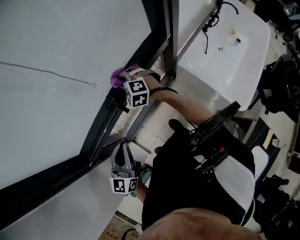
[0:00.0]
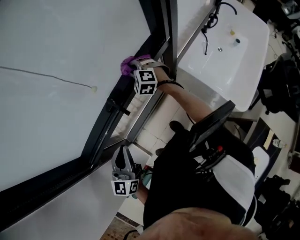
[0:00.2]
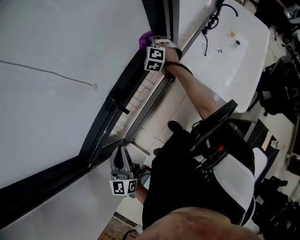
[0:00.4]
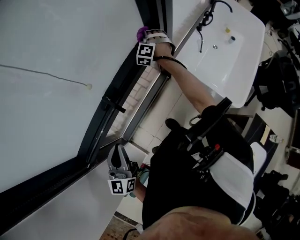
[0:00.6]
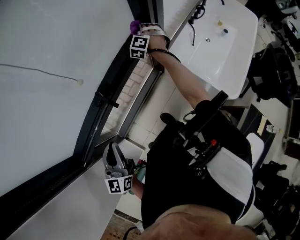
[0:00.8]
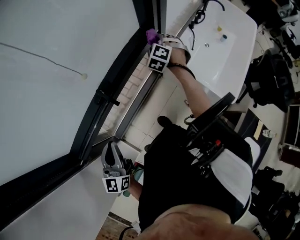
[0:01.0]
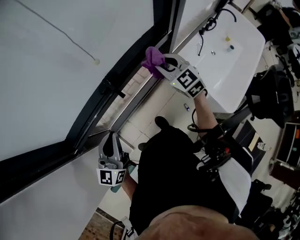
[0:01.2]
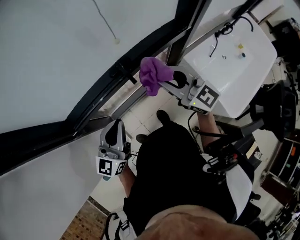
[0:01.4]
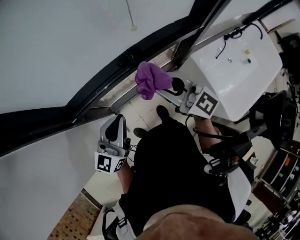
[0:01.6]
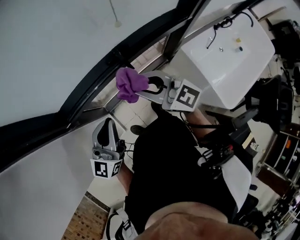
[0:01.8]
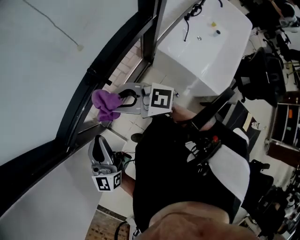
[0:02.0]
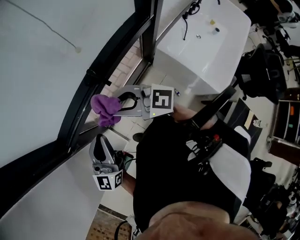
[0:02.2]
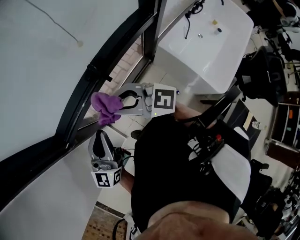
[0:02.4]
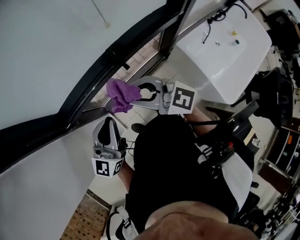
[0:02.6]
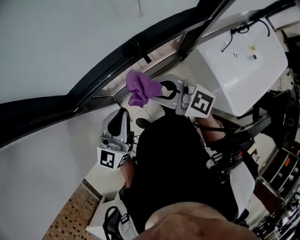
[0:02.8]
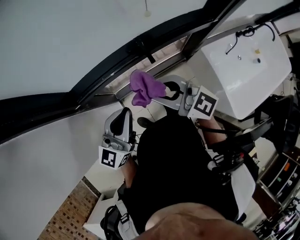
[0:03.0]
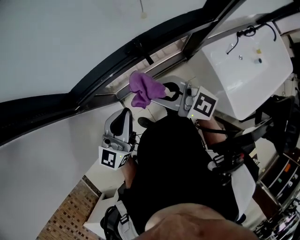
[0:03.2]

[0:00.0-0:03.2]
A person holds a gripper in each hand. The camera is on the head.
0:00.0 to 0:01.6: The right gripper ends up roughly 25 cm from where it was, and tips its fingers upward by approximately 40 degrees. The left gripper moves about 5 cm.
0:01.6 to 0:03.2: The right gripper heads to the left, covering about 5 cm.

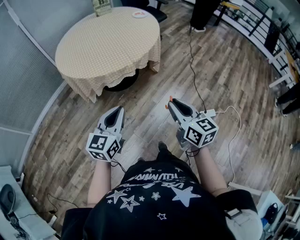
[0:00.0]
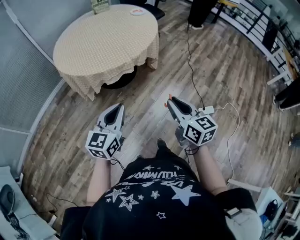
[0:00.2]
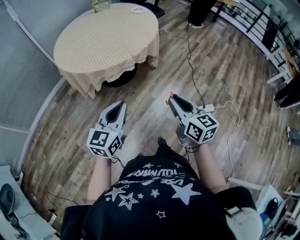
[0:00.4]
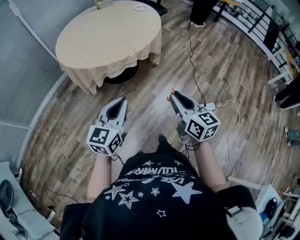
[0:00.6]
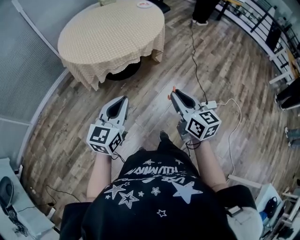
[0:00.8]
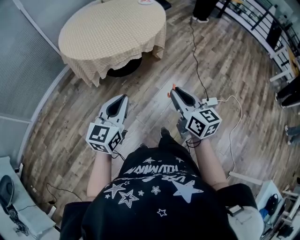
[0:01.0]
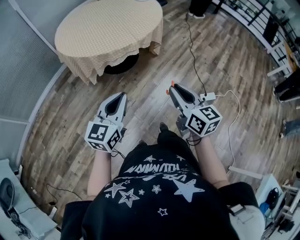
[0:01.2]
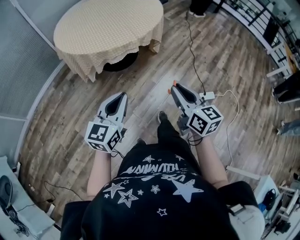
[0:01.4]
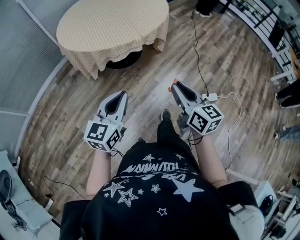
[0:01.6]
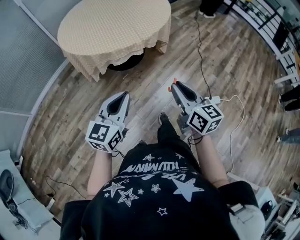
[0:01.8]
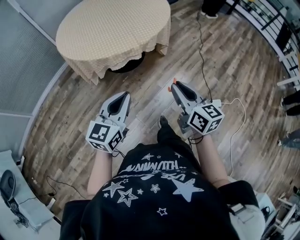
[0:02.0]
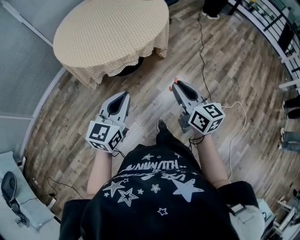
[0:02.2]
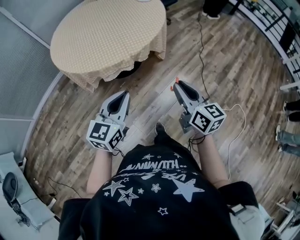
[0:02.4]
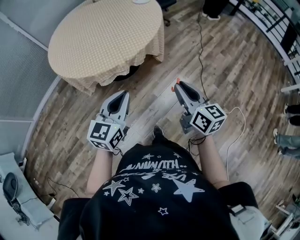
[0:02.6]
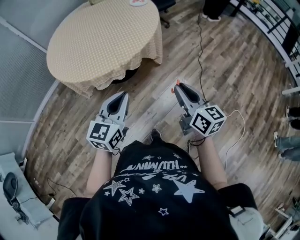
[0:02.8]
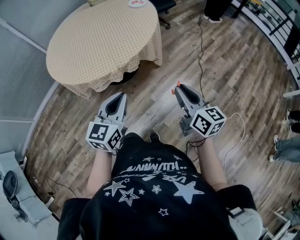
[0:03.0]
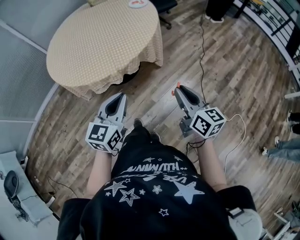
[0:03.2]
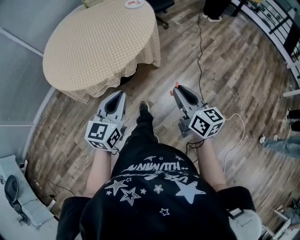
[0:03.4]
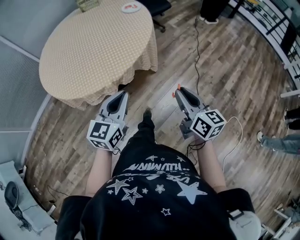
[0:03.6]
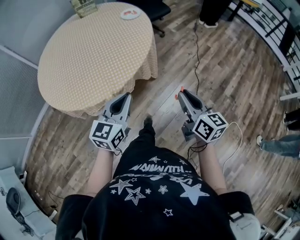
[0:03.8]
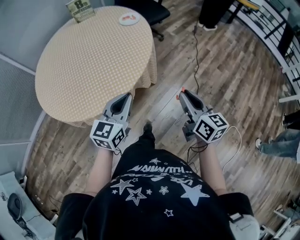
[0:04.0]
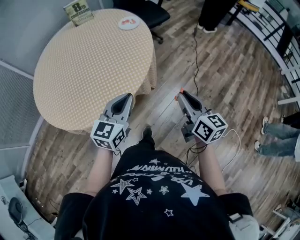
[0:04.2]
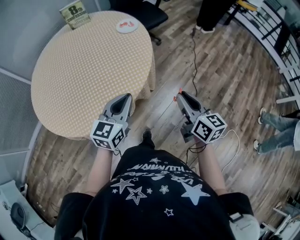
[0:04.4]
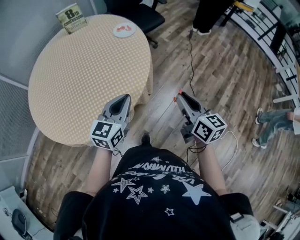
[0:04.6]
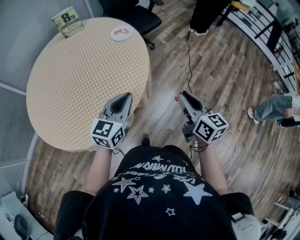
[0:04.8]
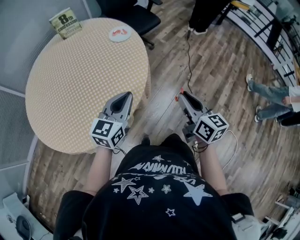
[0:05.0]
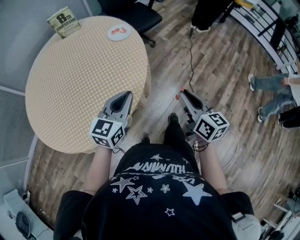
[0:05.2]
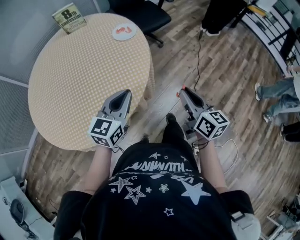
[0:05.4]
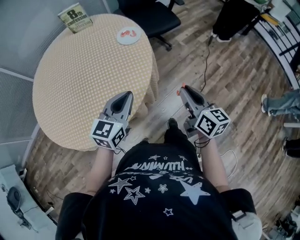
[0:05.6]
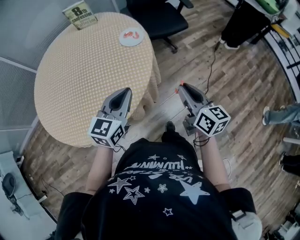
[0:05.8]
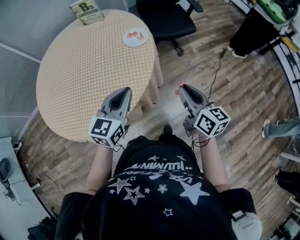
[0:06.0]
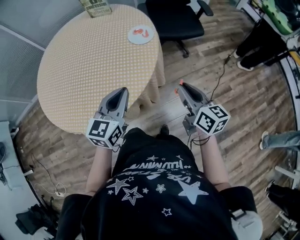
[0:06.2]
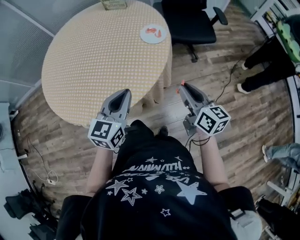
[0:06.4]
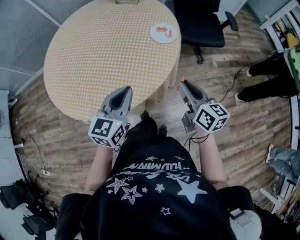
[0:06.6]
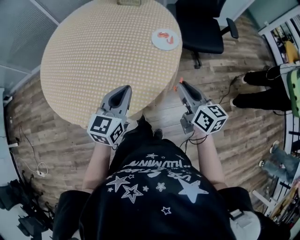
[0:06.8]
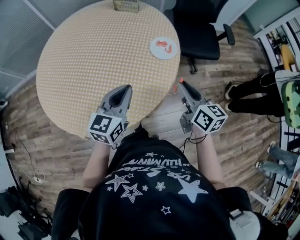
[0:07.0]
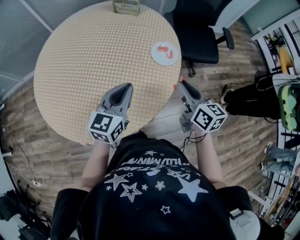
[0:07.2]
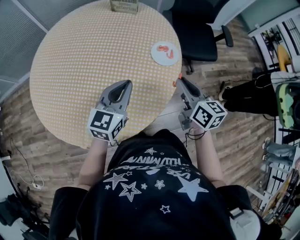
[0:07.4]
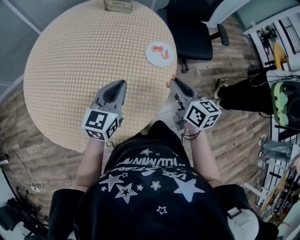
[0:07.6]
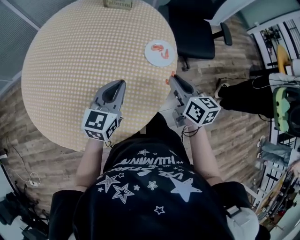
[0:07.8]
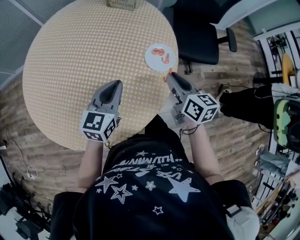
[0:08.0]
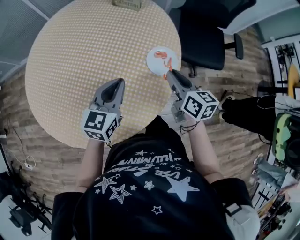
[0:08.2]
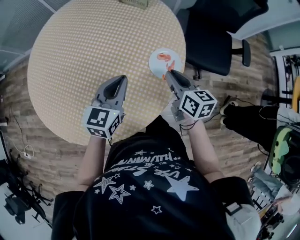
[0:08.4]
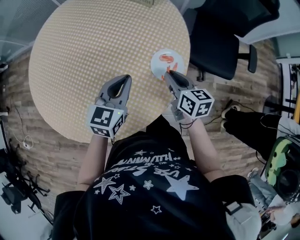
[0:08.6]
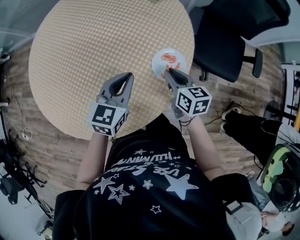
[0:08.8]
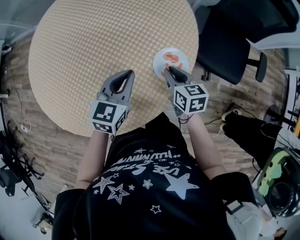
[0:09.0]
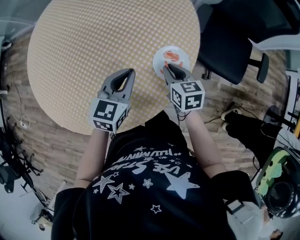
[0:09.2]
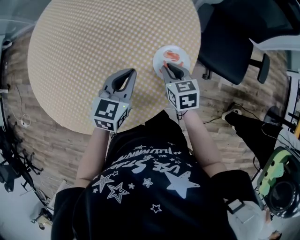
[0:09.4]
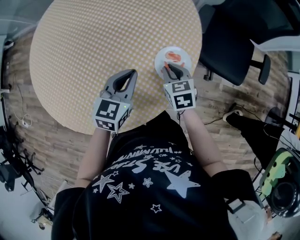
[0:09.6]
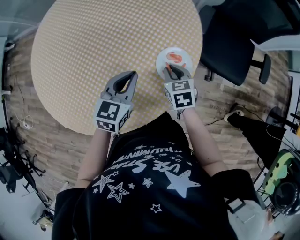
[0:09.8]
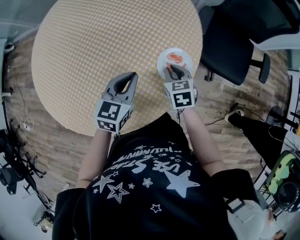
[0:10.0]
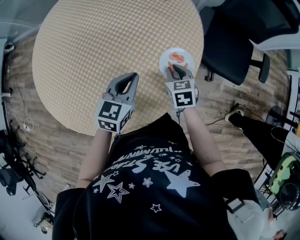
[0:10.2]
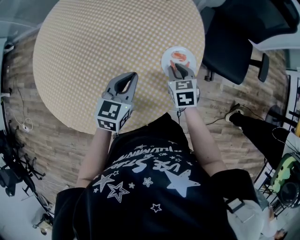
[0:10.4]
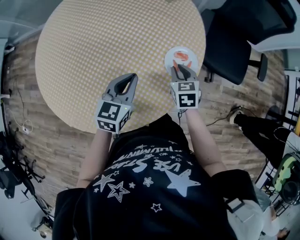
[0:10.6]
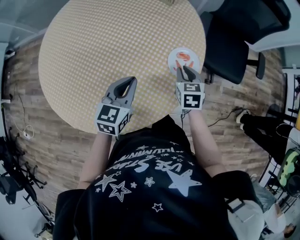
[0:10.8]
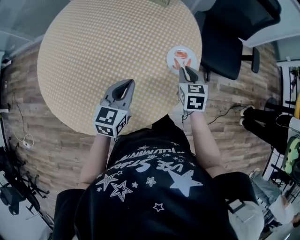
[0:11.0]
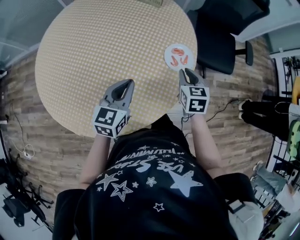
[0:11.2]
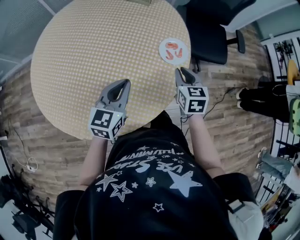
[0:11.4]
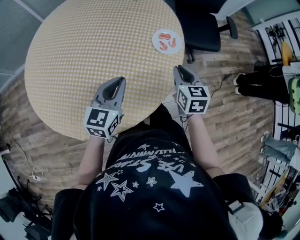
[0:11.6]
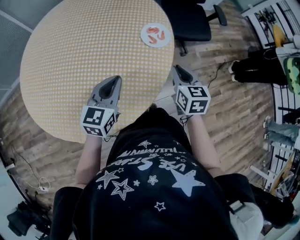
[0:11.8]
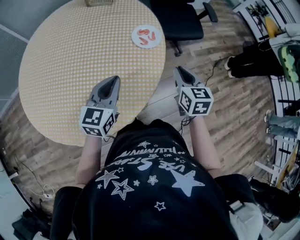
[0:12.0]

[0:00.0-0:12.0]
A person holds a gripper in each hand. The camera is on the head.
0:00.0 to 0:01.6: The right gripper moves roughly 5 cm, while the left gripper heads backward, covering about 5 cm.
0:01.6 to 0:03.0: The two grippers go approximately 30 cm forward and to the right.
0:03.0 to 0:04.4: The two grippers go about 25 cm forward.
0:04.4 to 0:06.0: The left gripper ends up roughly 20 cm from where it was, and swivels approximately 20 degrees; the right gripper shifts by about 30 cm, and changes its angle by some 20 degrees.
0:06.0 to 0:07.6: The two grippers go approximately 20 cm forward and to the left.
0:07.6 to 0:09.0: The left gripper travels forward, to the right and downward by roughly 15 cm, and rotates approximately 20 degrees; the right gripper moves forward and downward, about 20 cm, and rotates roughly 30 degrees.
0:09.0 to 0:10.4: The right gripper changes its angle by approximately 20 degrees.
0:10.4 to 0:12.0: The left gripper shifts by roughly 15 cm, and swivels approximately 30 degrees. The right gripper moves roughly 25 cm, and changes its angle by approximately 40 degrees.

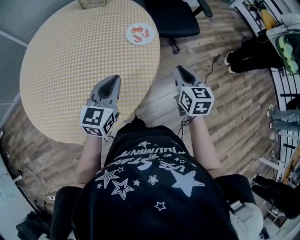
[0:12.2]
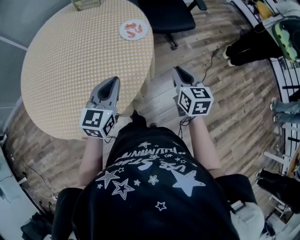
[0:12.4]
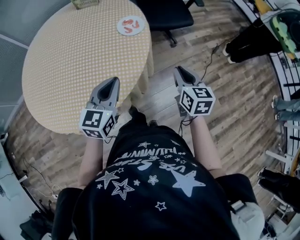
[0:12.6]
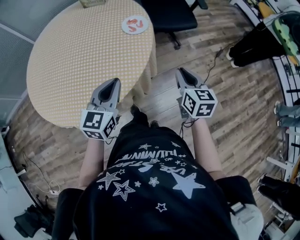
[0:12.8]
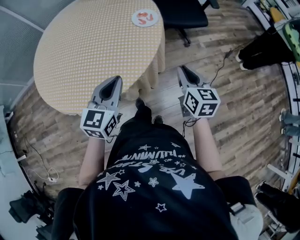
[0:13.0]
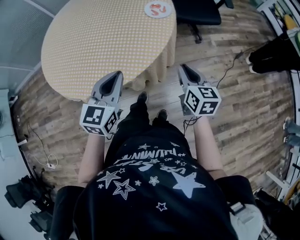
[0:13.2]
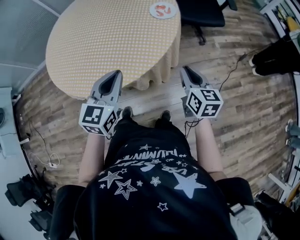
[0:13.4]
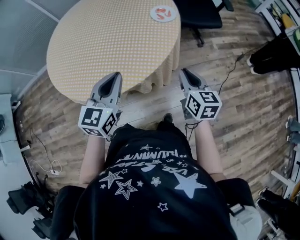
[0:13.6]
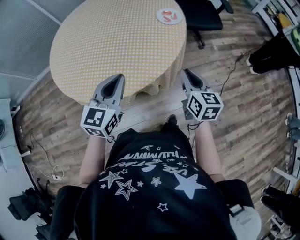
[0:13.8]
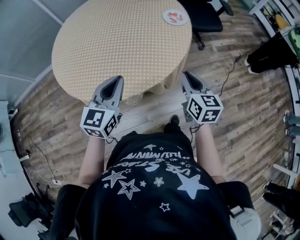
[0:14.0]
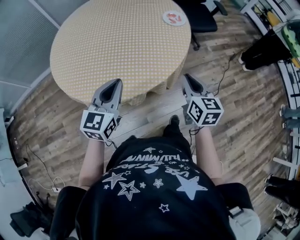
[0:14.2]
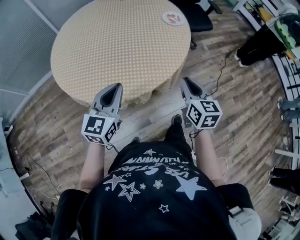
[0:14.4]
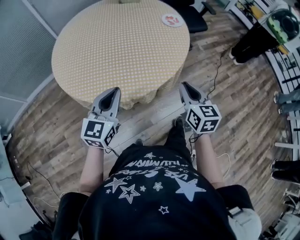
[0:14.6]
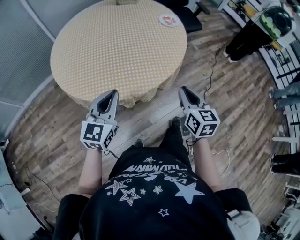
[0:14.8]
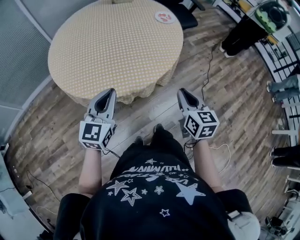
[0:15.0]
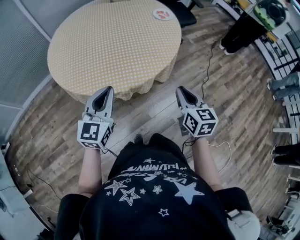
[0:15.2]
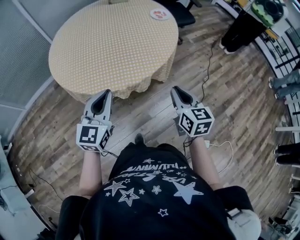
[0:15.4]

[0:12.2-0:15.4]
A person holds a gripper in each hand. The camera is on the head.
0:12.2 to 0:13.8: Both grippers travel together backward and to the left, roughly 20 cm.
0:13.8 to 0:15.4: The left gripper shifts approximately 25 cm to the left and backward; the right gripper is displaced backward and to the left by some 30 cm.

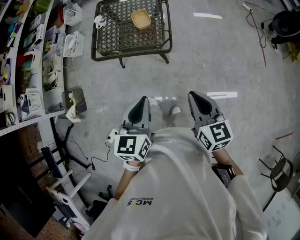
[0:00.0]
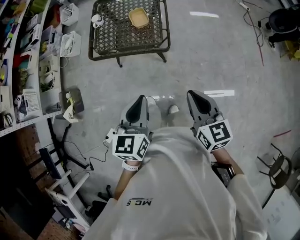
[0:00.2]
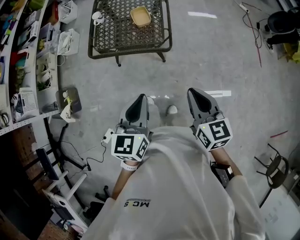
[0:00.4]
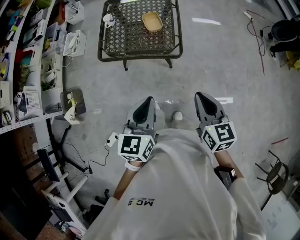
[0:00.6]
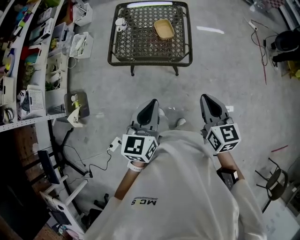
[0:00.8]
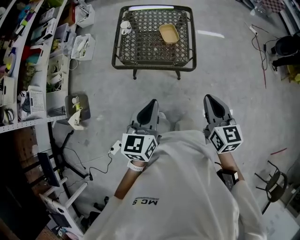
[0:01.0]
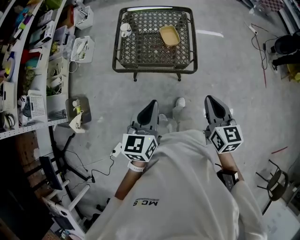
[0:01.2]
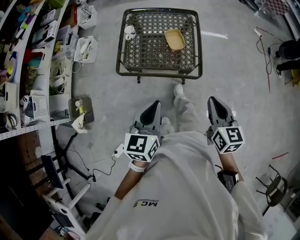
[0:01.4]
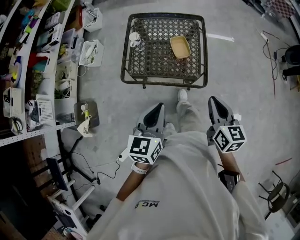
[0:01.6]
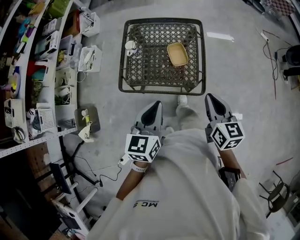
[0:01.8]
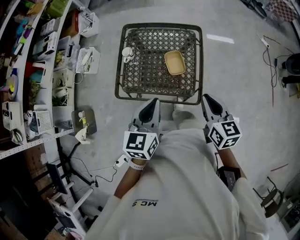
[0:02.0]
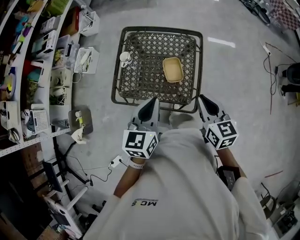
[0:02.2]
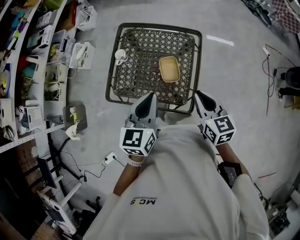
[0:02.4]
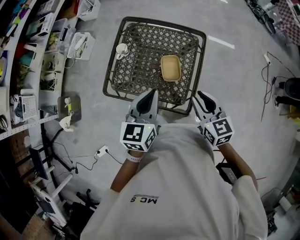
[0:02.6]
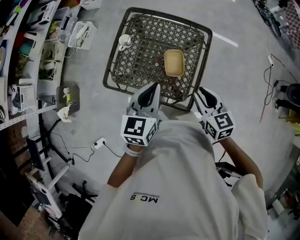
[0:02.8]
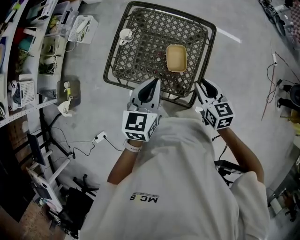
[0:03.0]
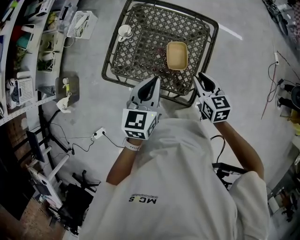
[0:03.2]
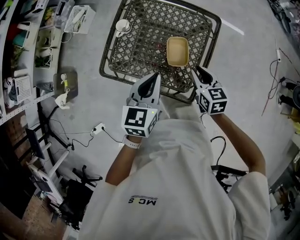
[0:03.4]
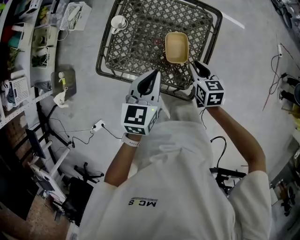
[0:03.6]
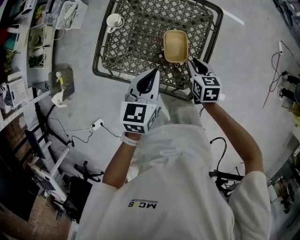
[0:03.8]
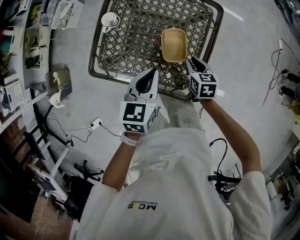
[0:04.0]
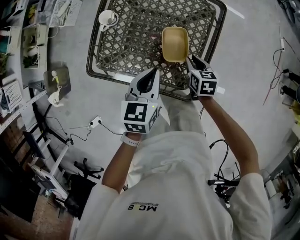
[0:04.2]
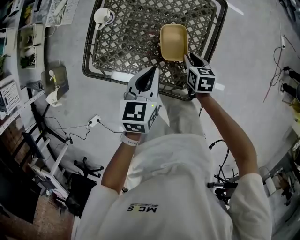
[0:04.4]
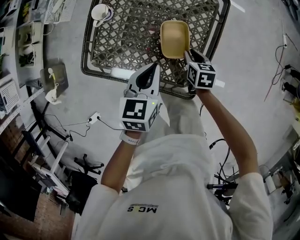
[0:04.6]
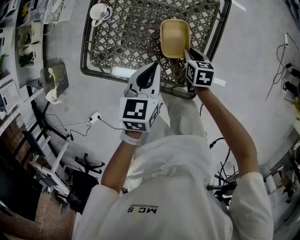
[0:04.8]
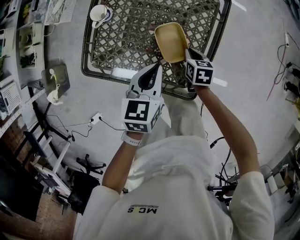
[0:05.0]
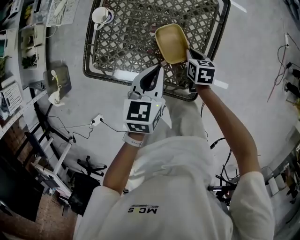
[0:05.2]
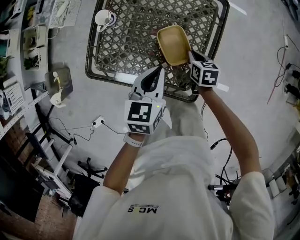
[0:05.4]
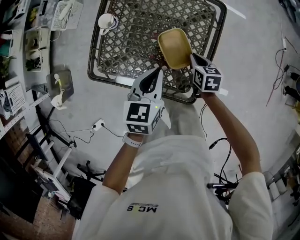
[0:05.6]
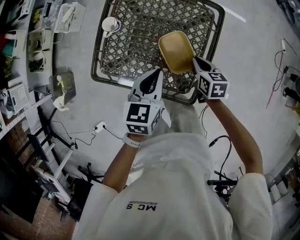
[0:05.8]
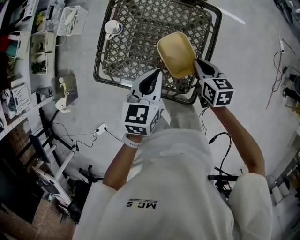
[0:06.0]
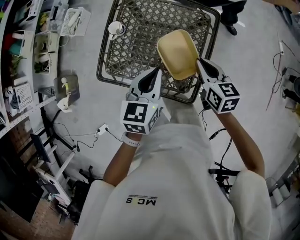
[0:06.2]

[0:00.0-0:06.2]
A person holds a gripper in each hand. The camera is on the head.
0:00.0 to 0:01.6: Both grippers travel together forward and to the left, about 25 cm.
0:01.6 to 0:03.2: The right gripper is displaced forward and downward by approximately 30 cm, and rotates approximately 30 degrees. Meanwhile the left gripper heads forward, covering some 25 cm.
0:03.2 to 0:04.6: The right gripper travels downward by about 20 cm, and turns by about 20 degrees. The left gripper shifts about 15 cm downward.
0:04.6 to 0:06.2: The right gripper is displaced upward by roughly 20 cm, and turns by roughly 20 degrees, while the left gripper goes approximately 10 cm upward.
